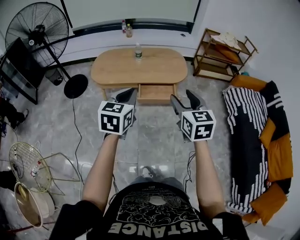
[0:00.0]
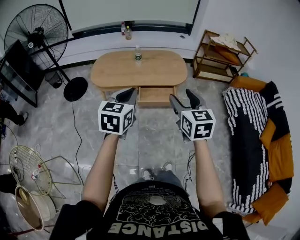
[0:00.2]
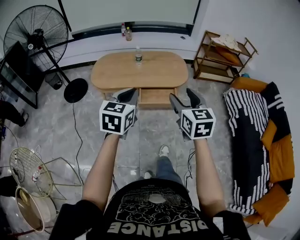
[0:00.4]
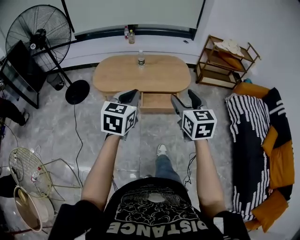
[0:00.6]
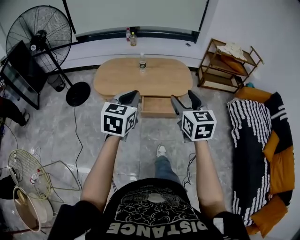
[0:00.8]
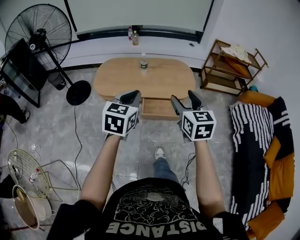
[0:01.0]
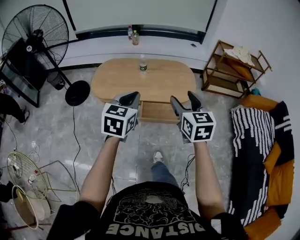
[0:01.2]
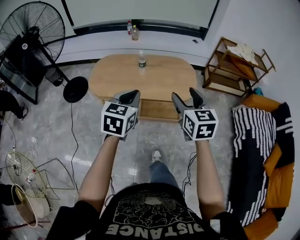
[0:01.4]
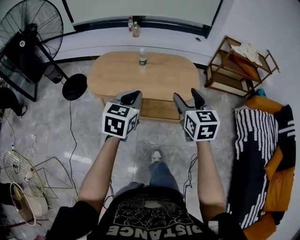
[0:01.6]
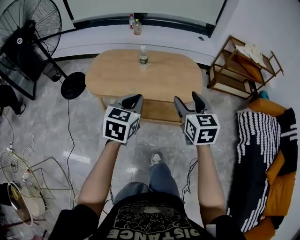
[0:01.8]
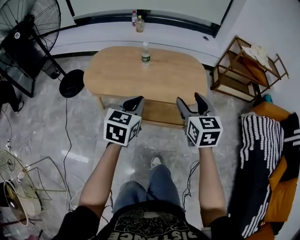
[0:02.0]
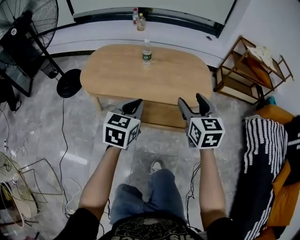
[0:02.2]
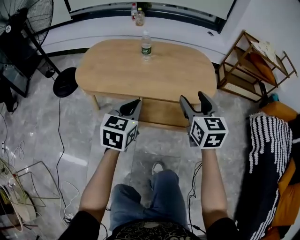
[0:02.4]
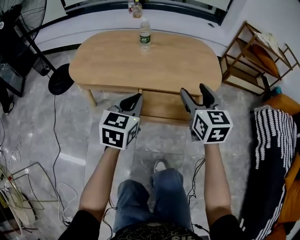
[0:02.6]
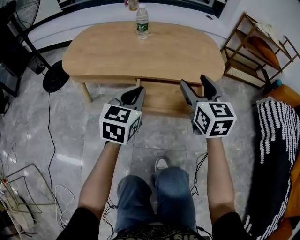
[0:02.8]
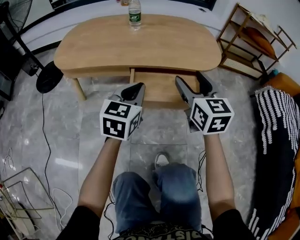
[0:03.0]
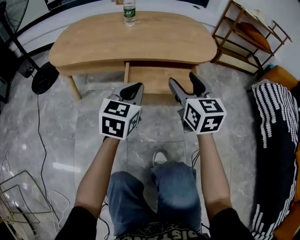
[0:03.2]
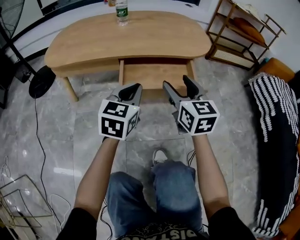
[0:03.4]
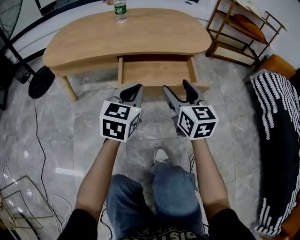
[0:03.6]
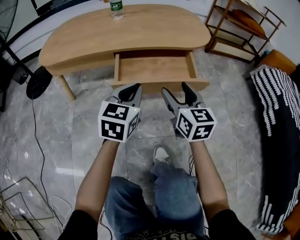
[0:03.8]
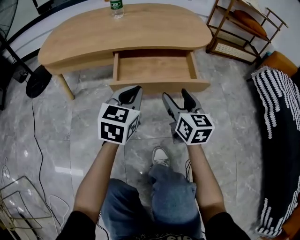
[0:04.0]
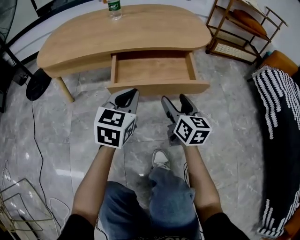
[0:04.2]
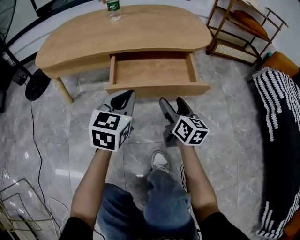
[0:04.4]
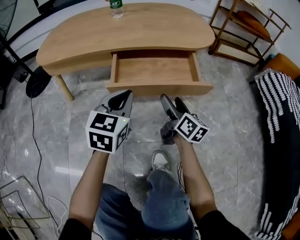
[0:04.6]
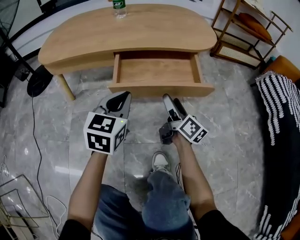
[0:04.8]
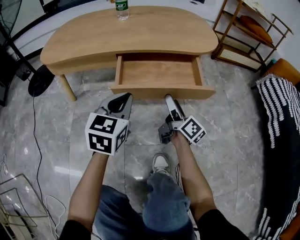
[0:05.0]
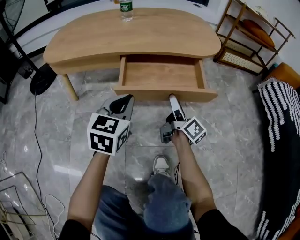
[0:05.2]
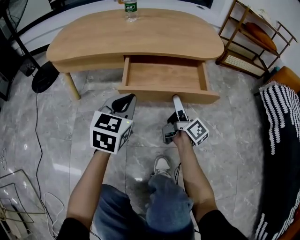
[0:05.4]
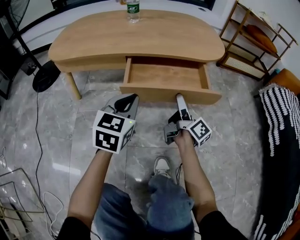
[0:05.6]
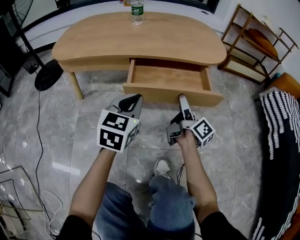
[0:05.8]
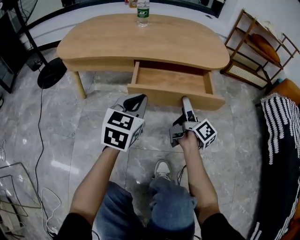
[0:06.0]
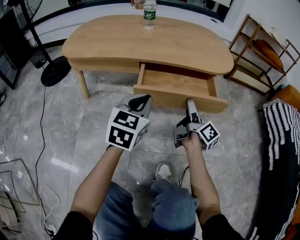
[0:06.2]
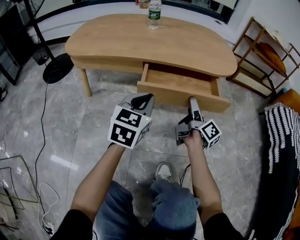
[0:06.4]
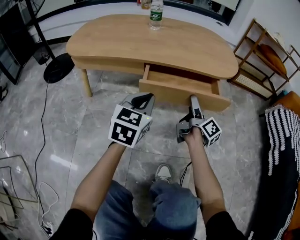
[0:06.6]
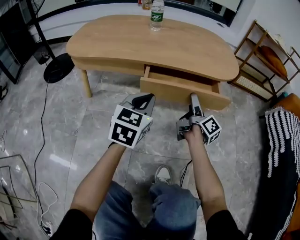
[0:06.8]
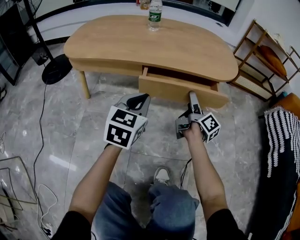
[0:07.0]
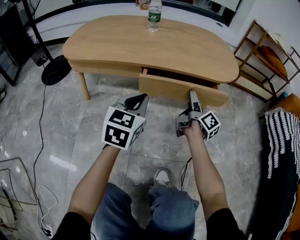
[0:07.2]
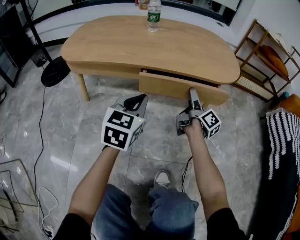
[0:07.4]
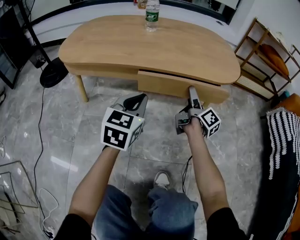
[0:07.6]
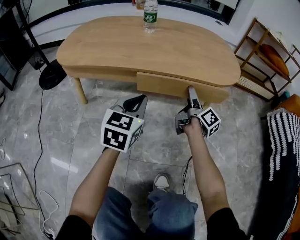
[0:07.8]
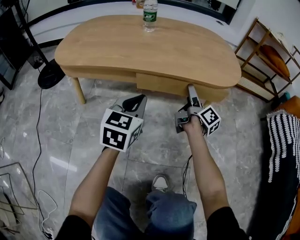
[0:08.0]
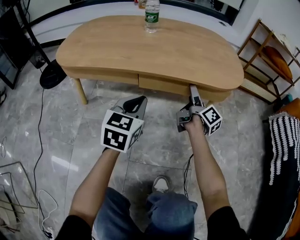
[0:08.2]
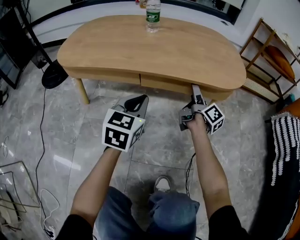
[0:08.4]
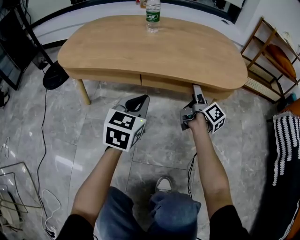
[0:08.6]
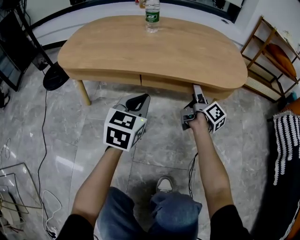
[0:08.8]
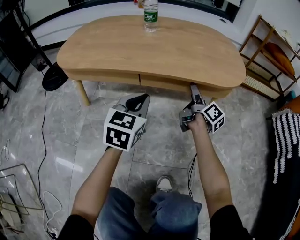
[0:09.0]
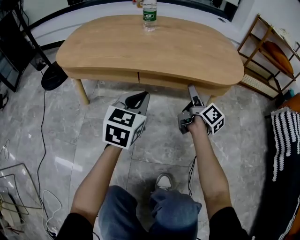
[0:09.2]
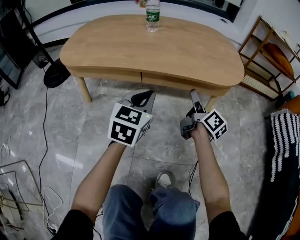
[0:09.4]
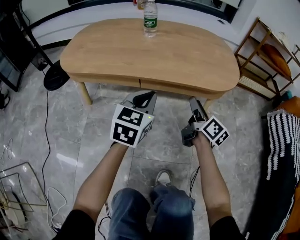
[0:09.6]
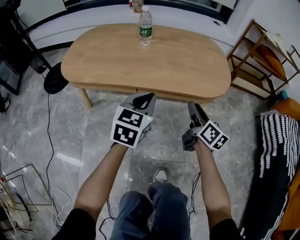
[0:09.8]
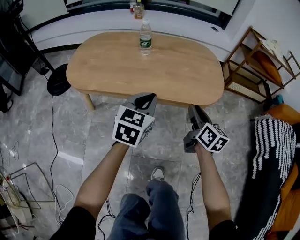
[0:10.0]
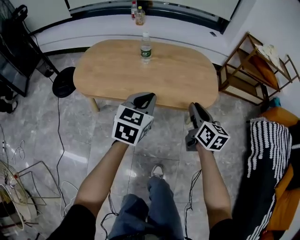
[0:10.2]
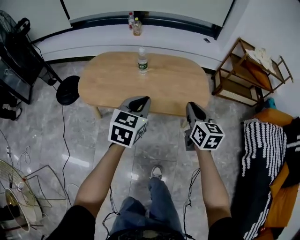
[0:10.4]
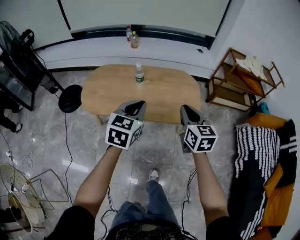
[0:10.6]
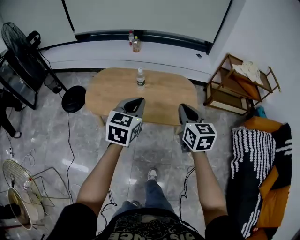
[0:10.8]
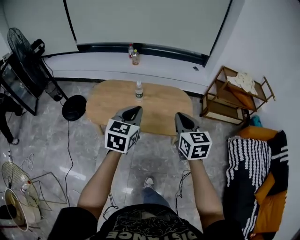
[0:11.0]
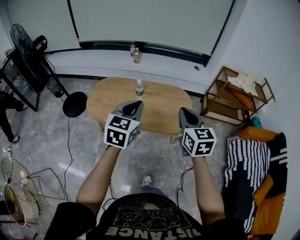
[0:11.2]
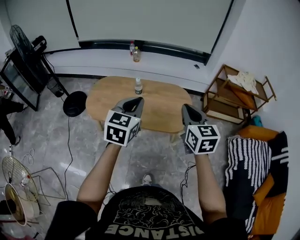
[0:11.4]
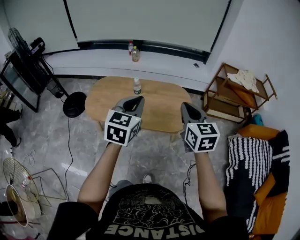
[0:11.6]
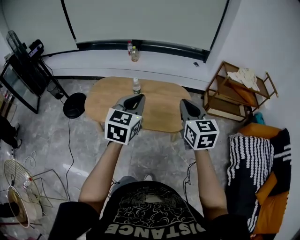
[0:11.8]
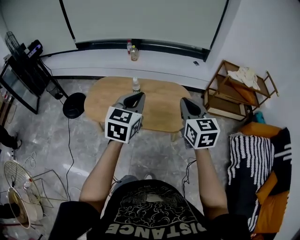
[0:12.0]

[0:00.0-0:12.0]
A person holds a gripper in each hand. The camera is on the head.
0:00.0 to 0:01.6: The left gripper moves forward and downward, about 25 cm; the right gripper heads forward, covering about 25 cm.
0:01.6 to 0:03.0: Both grippers travel together downward, about 35 cm.
0:03.0 to 0:04.4: The left gripper travels downward by roughly 10 cm; the right gripper goes about 20 cm downward, and rotates approximately 30 degrees.
0:04.4 to 0:06.0: The right gripper twists roughly 40 degrees clockwise, seen from behind.
0:06.0 to 0:07.6: The left gripper shifts approximately 5 cm forward. The right gripper travels forward by about 10 cm.
0:07.6 to 0:09.0: The grippers make only small movements.
0:09.0 to 0:10.4: The grippers both shift upward by some 35 cm. The right gripper rolls counterclockwise, seen from behind, by approximately 50 degrees, and closes up.
0:10.4 to 0:12.0: The grippers both shift upward by about 25 cm.

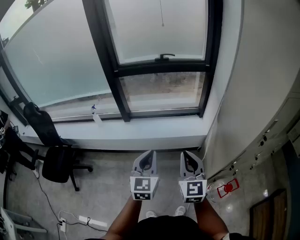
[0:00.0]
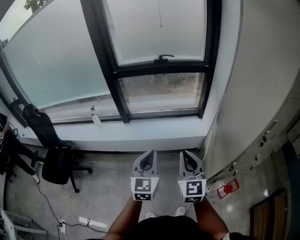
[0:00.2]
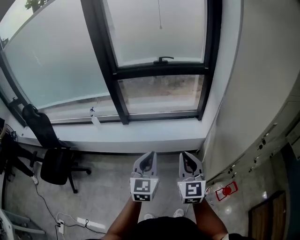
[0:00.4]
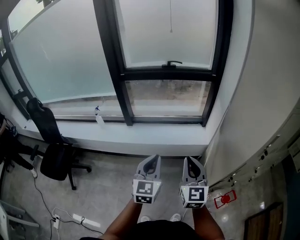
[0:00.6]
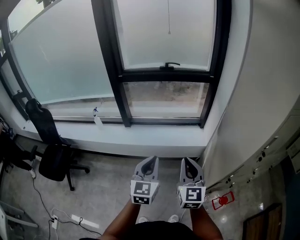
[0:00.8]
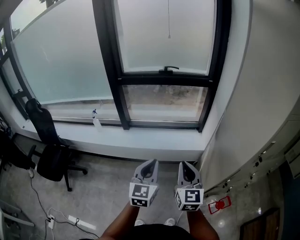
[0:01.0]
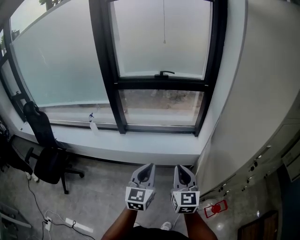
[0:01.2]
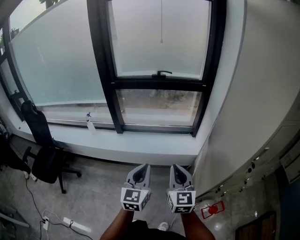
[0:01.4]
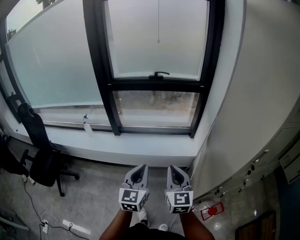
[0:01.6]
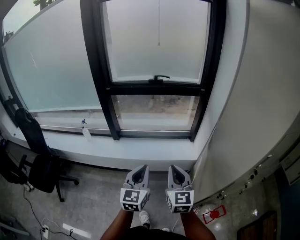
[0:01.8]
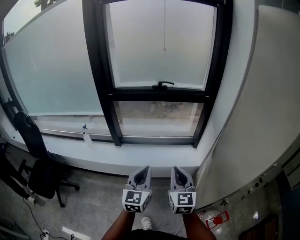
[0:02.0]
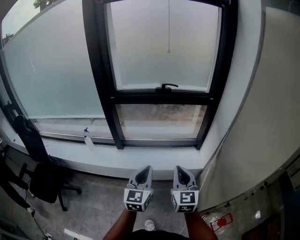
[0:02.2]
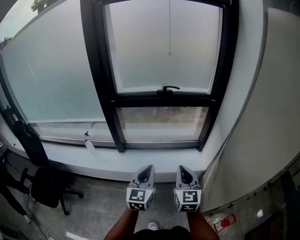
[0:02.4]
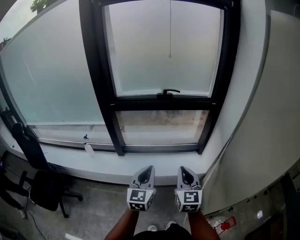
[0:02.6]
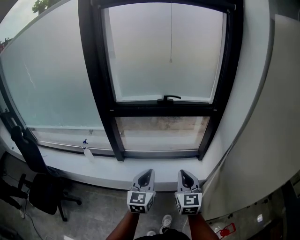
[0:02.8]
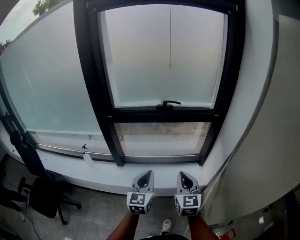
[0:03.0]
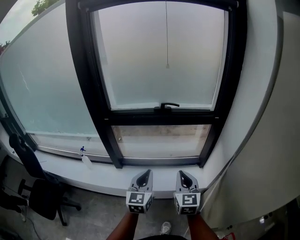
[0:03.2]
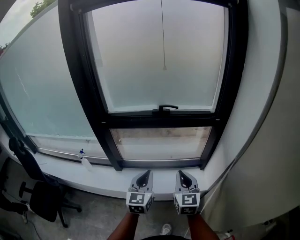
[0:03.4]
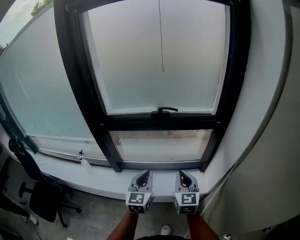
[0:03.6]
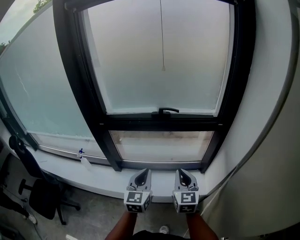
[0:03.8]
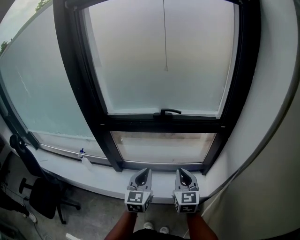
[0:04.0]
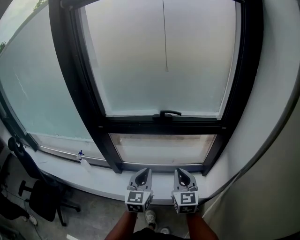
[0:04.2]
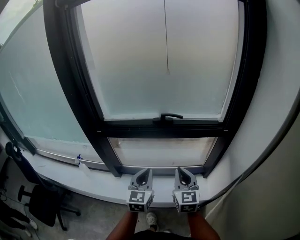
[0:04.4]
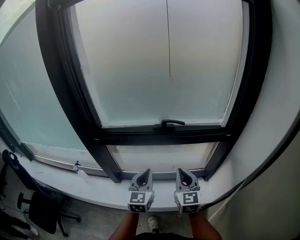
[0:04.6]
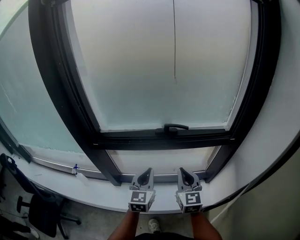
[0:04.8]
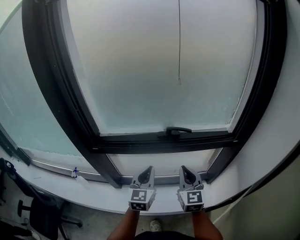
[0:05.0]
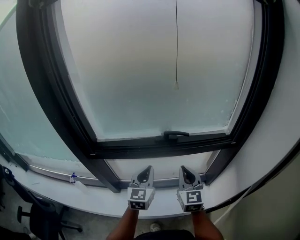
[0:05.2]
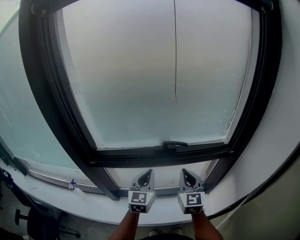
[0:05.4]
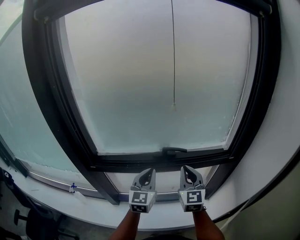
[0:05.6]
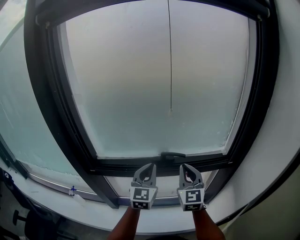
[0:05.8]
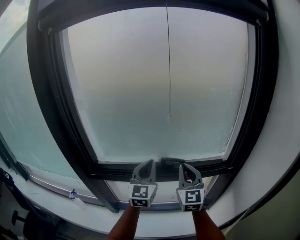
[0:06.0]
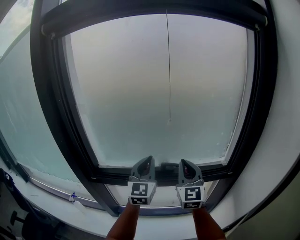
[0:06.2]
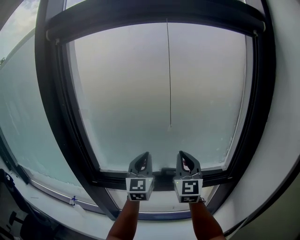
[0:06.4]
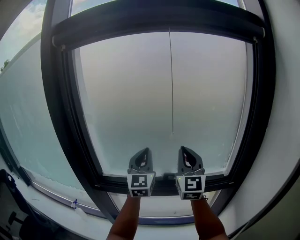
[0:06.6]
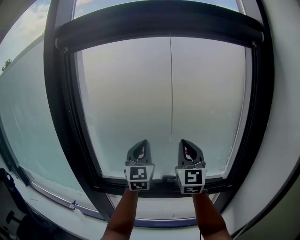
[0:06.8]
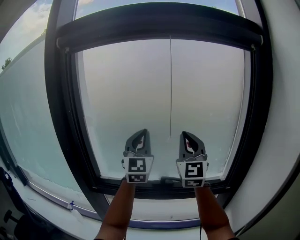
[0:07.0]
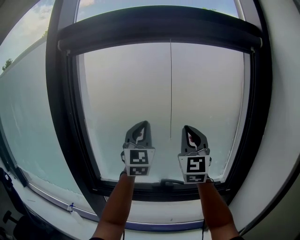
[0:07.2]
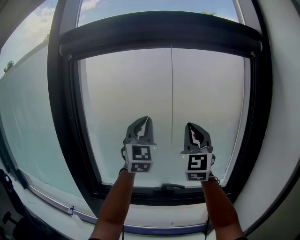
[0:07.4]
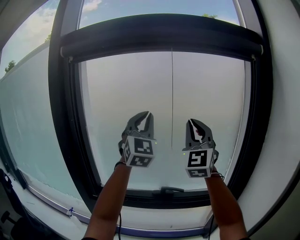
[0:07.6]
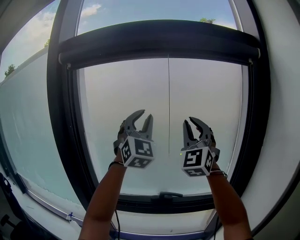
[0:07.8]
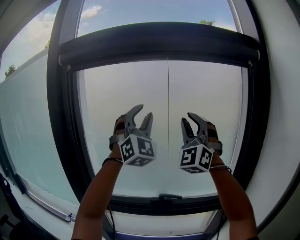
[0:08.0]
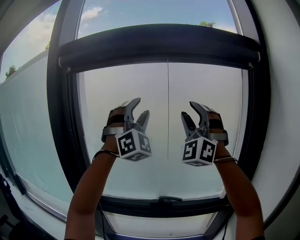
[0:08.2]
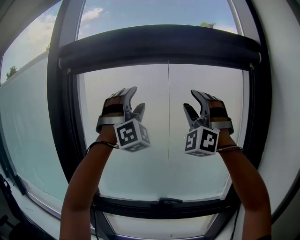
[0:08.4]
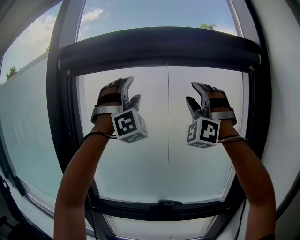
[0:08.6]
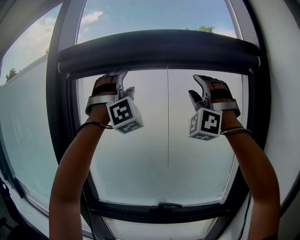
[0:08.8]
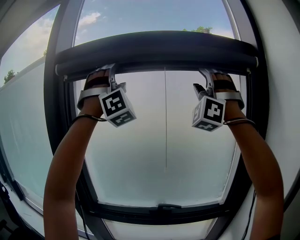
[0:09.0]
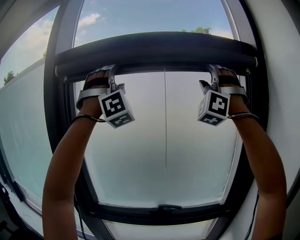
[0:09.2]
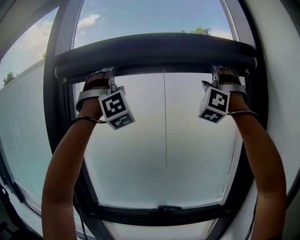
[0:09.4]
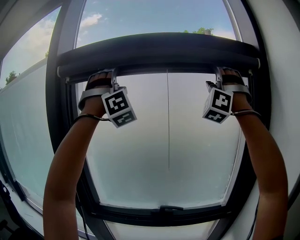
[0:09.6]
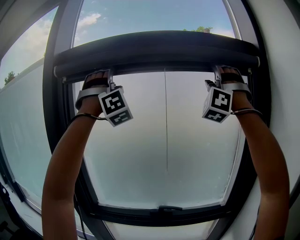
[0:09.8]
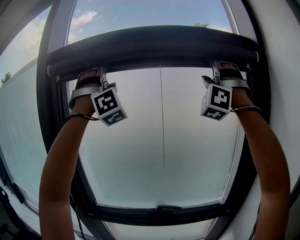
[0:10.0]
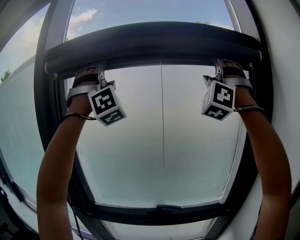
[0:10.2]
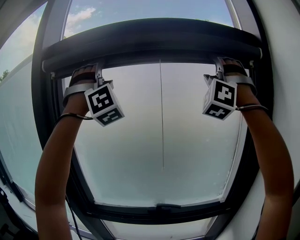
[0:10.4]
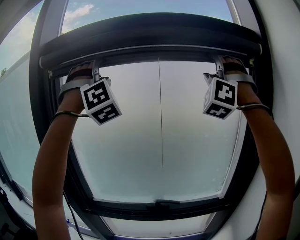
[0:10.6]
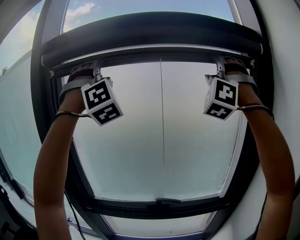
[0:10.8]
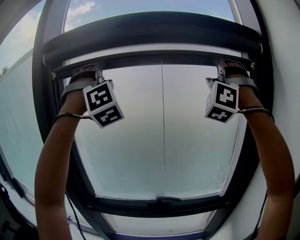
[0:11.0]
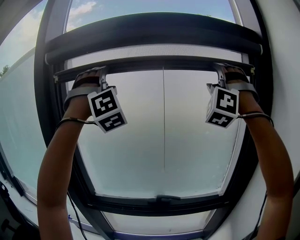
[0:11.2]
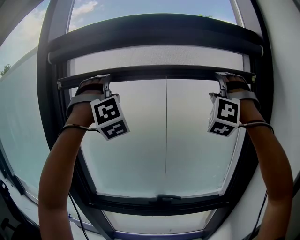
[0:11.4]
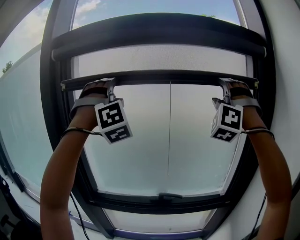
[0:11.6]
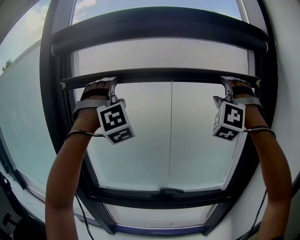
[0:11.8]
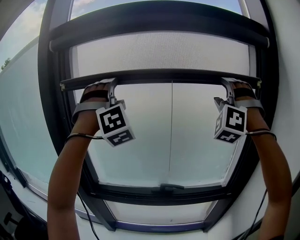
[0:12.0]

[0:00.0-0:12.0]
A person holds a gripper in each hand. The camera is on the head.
0:00.0 to 0:01.6: The right gripper heads forward, covering some 5 cm. Meanwhile the left gripper is displaced to the right by some 5 cm.
0:01.6 to 0:03.0: The two grippers go some 25 cm forward.
0:03.0 to 0:04.4: The grippers both shift forward by roughly 20 cm.
0:04.4 to 0:06.0: The two grippers go roughly 25 cm forward and upward.
0:06.0 to 0:07.6: The grippers both shift upward by approximately 30 cm. The right gripper rotates some 30 degrees. Meanwhile the left gripper turns by some 40 degrees.
0:07.6 to 0:09.0: Both grippers move upward, roughly 20 cm. The left gripper rolls clockwise, seen from behind, by approximately 60 degrees, and opens up, while the right gripper rotates around the line of its fingers by roughly 60 degrees, counterclockwise from behind, and opens up.
0:09.0 to 0:10.4: The right gripper ends up some 5 cm from where it was.
0:10.4 to 0:12.0: The grippers both shift downward by approximately 15 cm.
